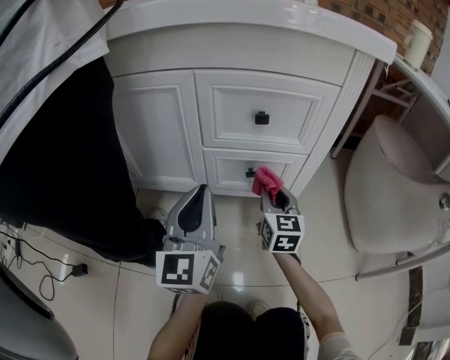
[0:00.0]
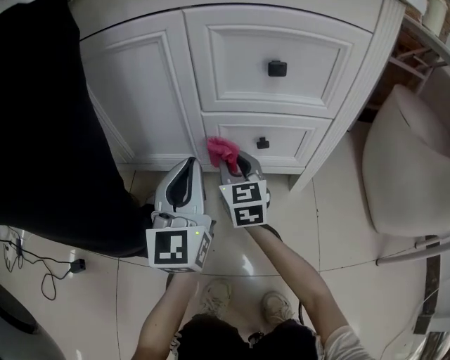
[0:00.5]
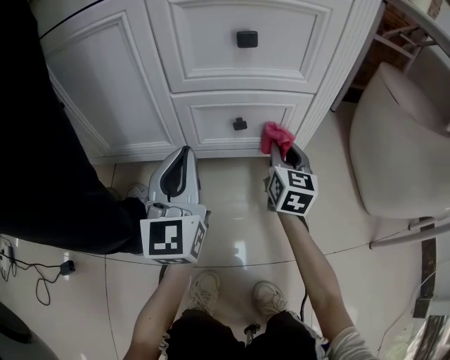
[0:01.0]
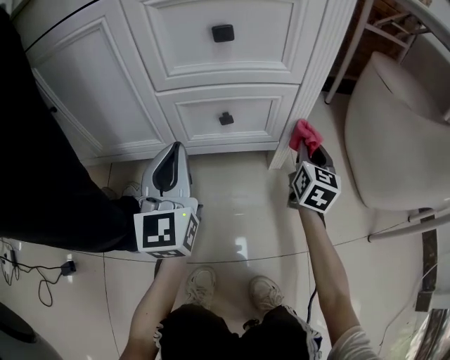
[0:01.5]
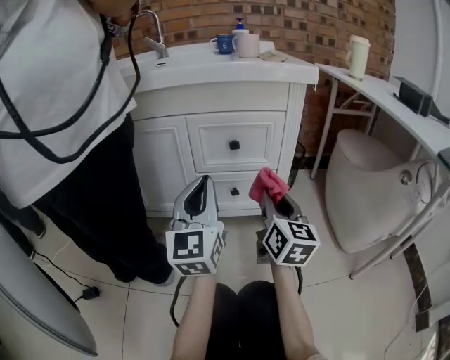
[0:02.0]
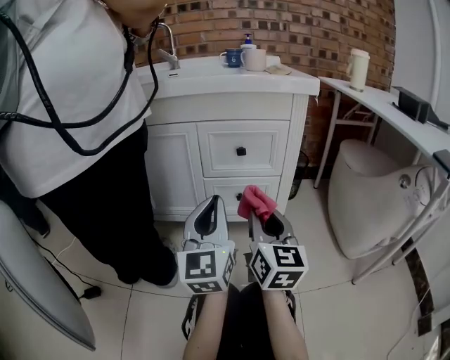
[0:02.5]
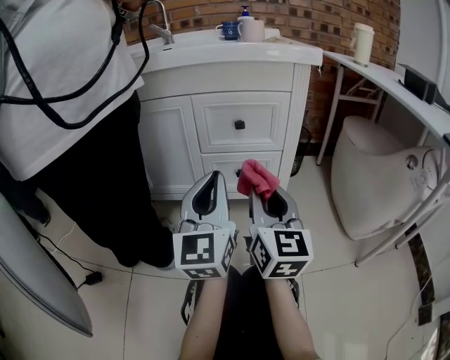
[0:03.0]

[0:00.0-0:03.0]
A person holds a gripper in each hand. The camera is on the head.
0:00.0 to 0:01.5: The right gripper moves to the right and downward, approximately 20 cm, and rotates roughly 20 degrees. The left gripper moves downward and forward, roughly 15 cm.
0:01.5 to 0:03.0: The right gripper shifts roughly 40 cm upward, backward and to the left, and changes its angle by approximately 30 degrees. Meanwhile the left gripper is displaced upward and backward by approximately 25 cm.

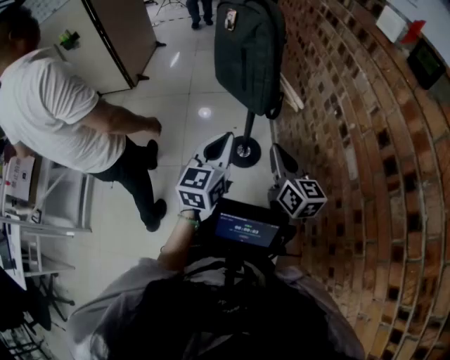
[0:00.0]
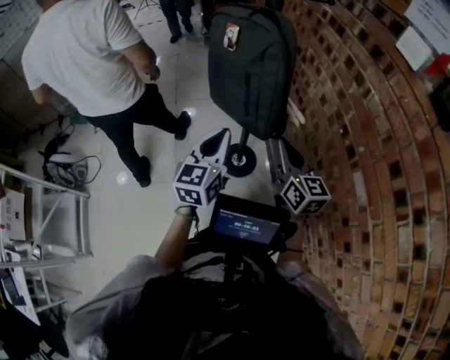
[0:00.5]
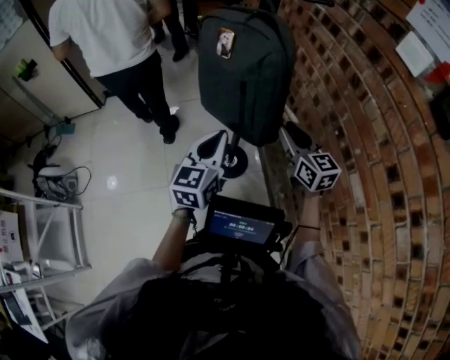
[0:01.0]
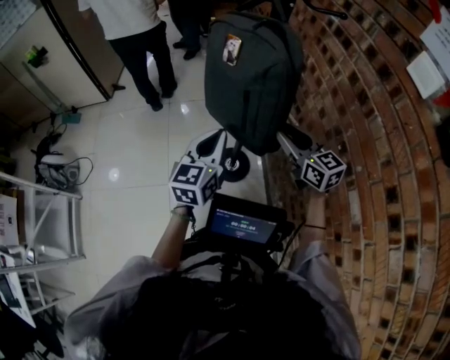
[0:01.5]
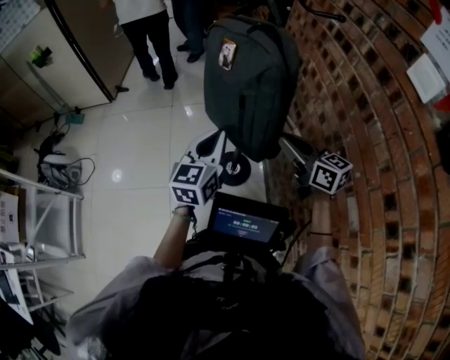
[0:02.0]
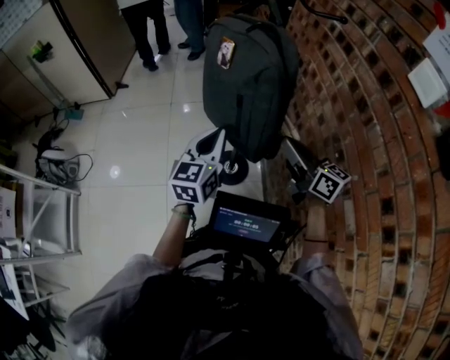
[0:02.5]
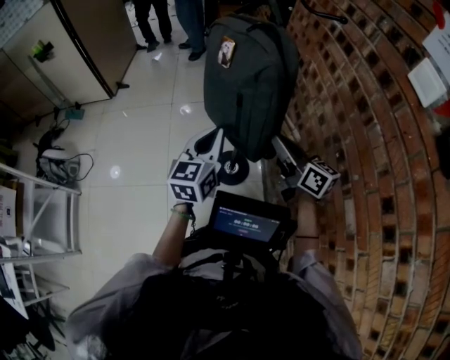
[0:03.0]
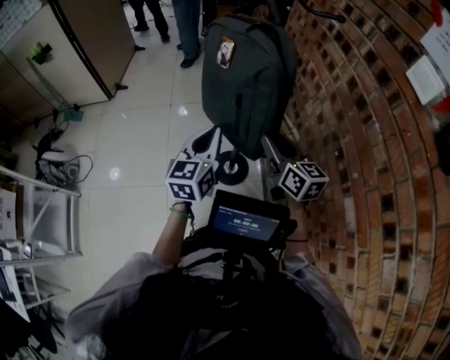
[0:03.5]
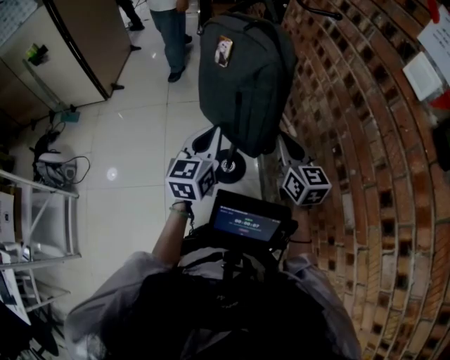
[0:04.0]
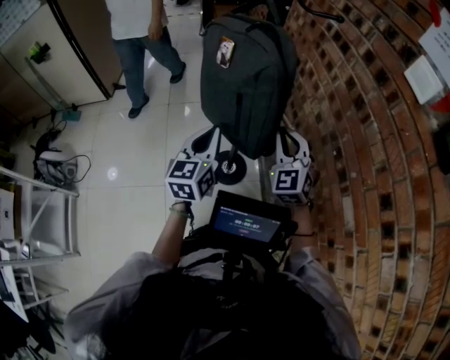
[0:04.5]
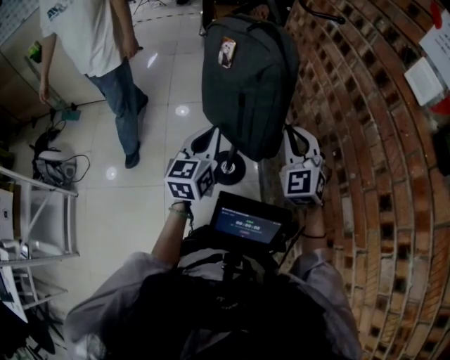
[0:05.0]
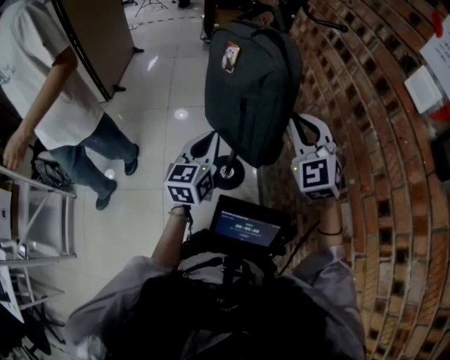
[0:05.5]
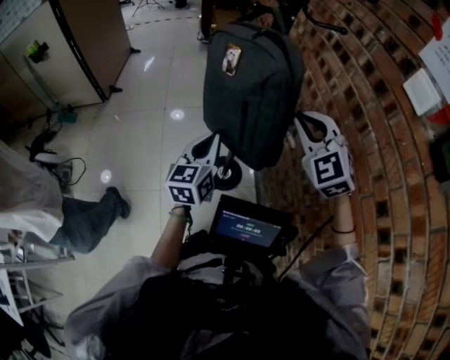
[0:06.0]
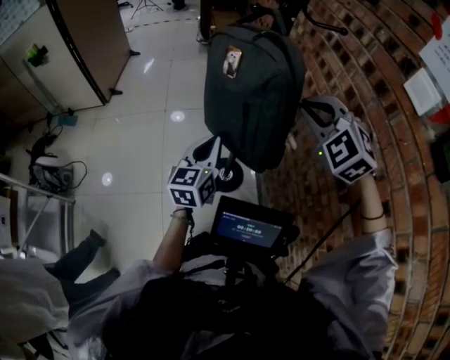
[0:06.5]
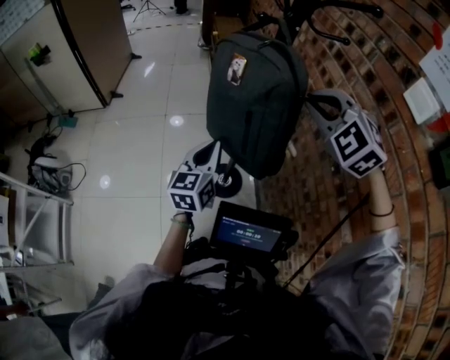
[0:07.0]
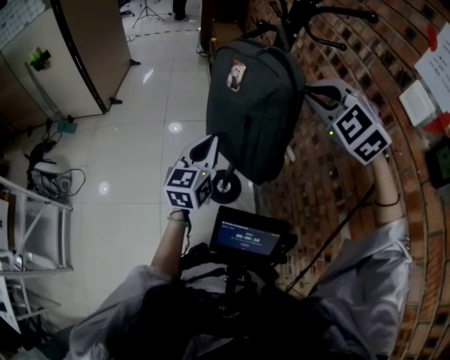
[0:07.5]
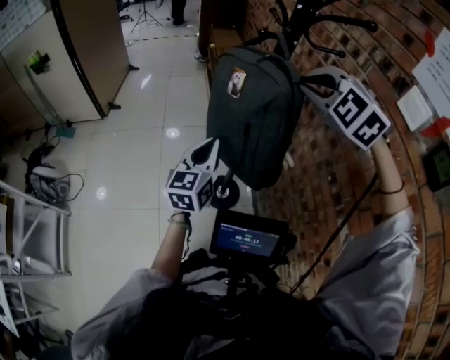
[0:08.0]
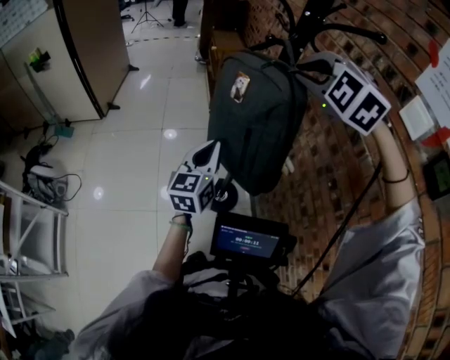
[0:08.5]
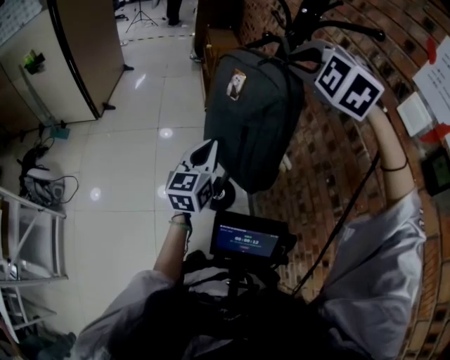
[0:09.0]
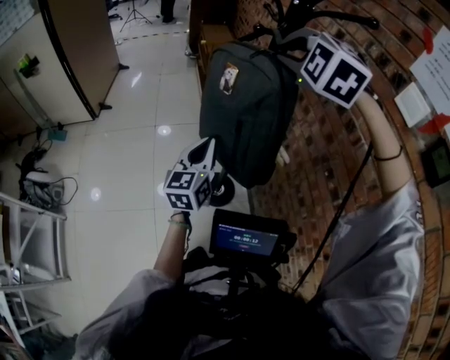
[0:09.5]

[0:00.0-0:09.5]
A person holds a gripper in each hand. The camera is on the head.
0:00.0 to 0:02.0: The two grippers go some 15 cm forward. The right gripper turns by approximately 20 degrees, and opens, then closes again.
0:02.0 to 0:04.0: The right gripper changes its angle by approximately 30 degrees, and opens, then closes once more.
0:04.0 to 0:05.5: The right gripper is displaced upward by roughly 10 cm, and rotates around the line of its fingers by approximately 50 degrees, counterclockwise from behind.
0:05.5 to 0:07.5: The right gripper is displaced upward by about 10 cm, and rotates some 30 degrees.
0:07.5 to 0:09.5: The right gripper shifts some 10 cm to the left, upward and forward.

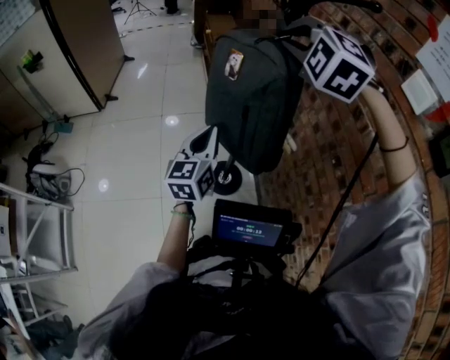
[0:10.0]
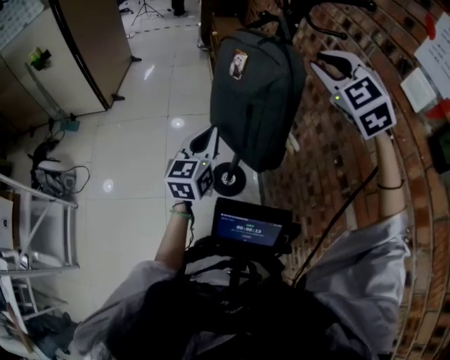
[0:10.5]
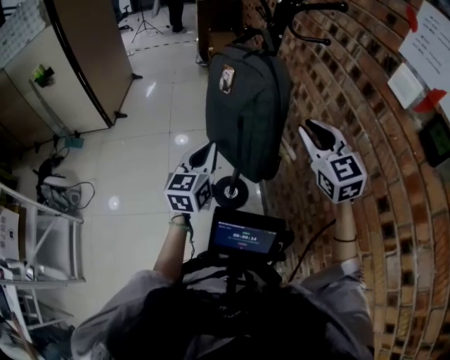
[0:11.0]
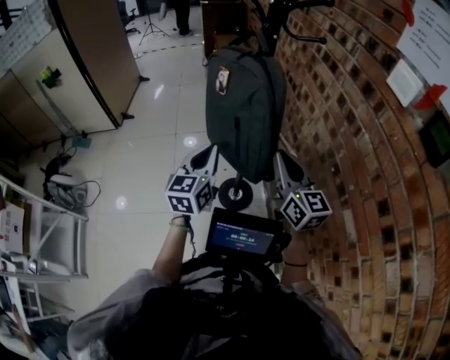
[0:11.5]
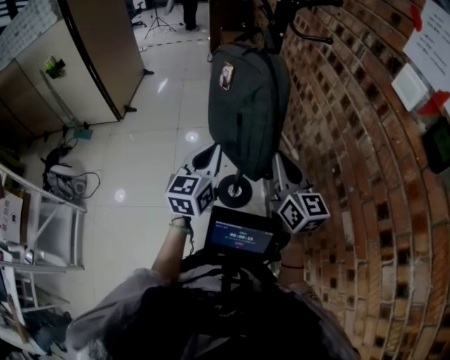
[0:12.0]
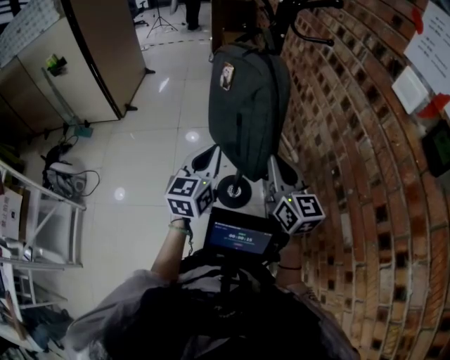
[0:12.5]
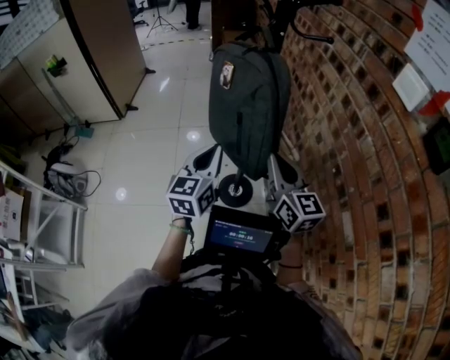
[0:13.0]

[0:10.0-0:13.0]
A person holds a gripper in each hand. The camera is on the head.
0:10.0 to 0:11.5: The right gripper travels downward, backward and to the right by roughly 25 cm, and rotates around the line of its fingers by approximately 90 degrees, clockwise from behind.
0:11.5 to 0:13.0: The grippers move only a little.

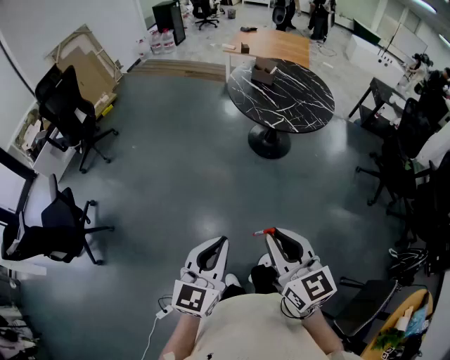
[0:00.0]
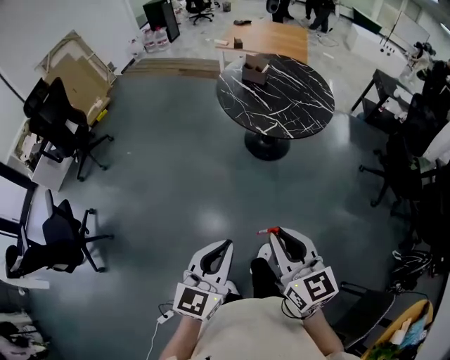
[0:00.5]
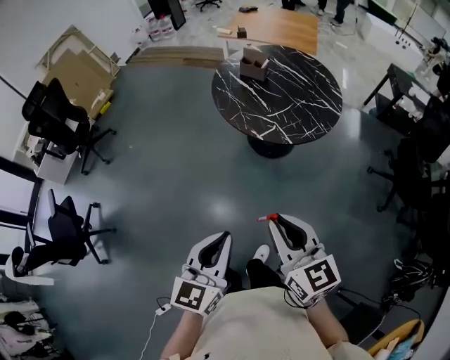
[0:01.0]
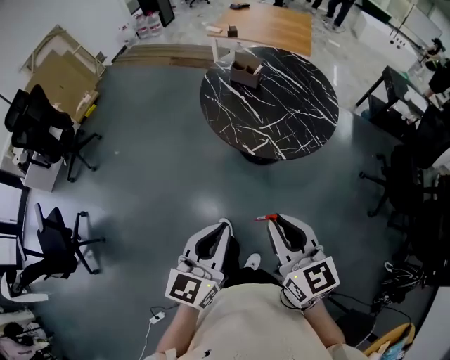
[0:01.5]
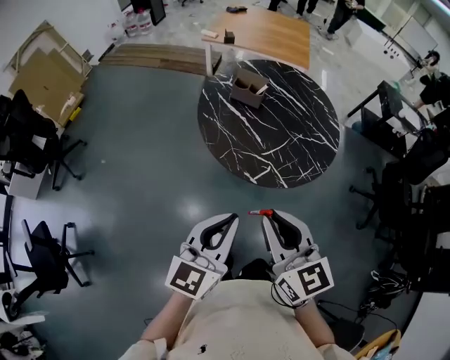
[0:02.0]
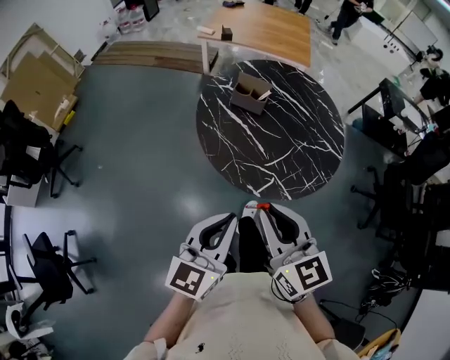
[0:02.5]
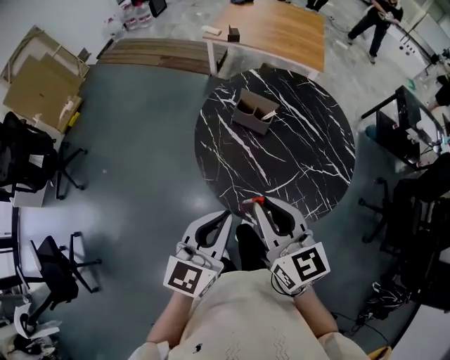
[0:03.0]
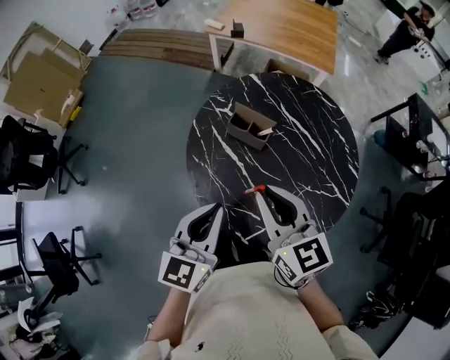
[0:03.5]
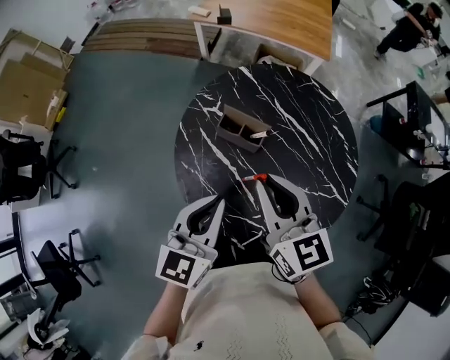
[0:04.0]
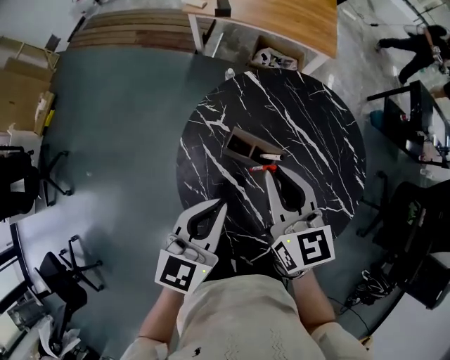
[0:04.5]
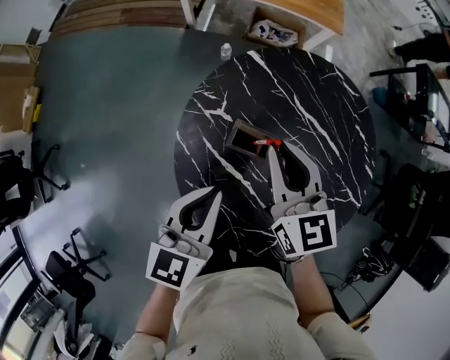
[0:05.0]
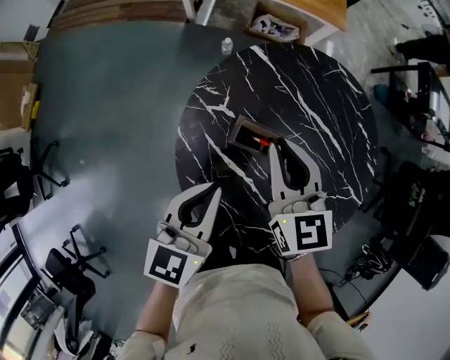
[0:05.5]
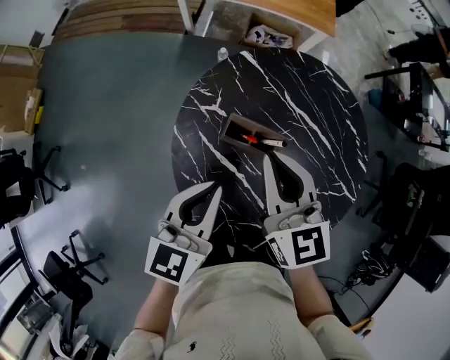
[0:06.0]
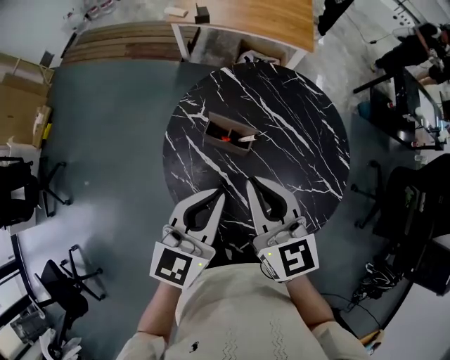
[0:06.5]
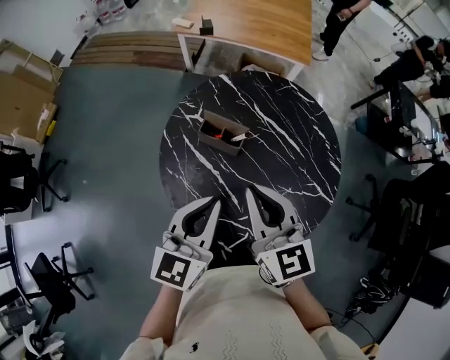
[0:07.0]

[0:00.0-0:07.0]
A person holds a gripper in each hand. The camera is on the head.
0:00.0 to 0:02.0: The two grippers travel together, forward, approximately 50 cm.
0:02.0 to 0:03.5: Both grippers travel together forward, some 35 cm.
0:03.5 to 0:05.0: Both grippers move forward and downward, approximately 25 cm.
0:05.0 to 0:07.0: The left gripper is displaced backward, to the right and upward by approximately 20 cm; the right gripper goes about 25 cm backward and upward.

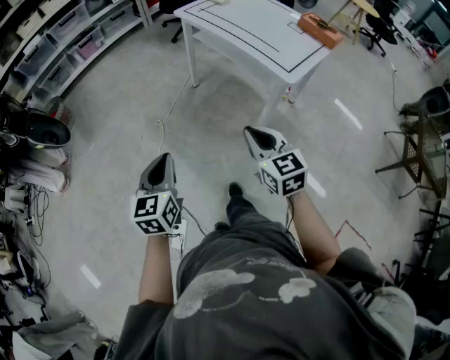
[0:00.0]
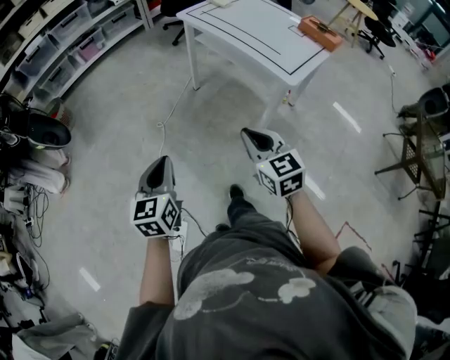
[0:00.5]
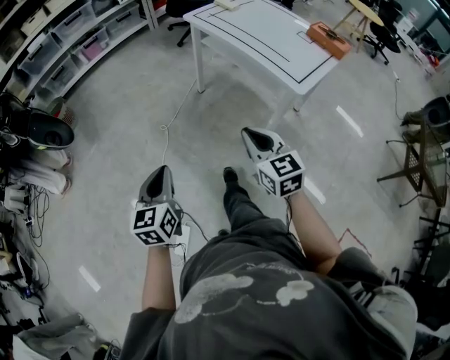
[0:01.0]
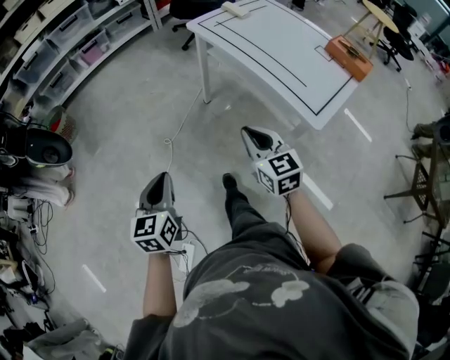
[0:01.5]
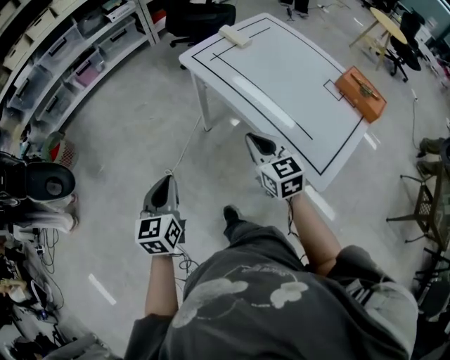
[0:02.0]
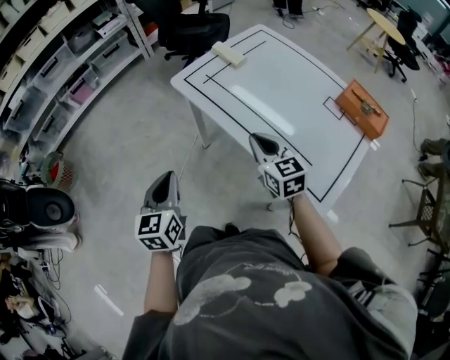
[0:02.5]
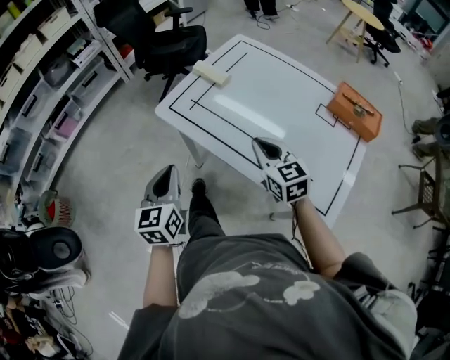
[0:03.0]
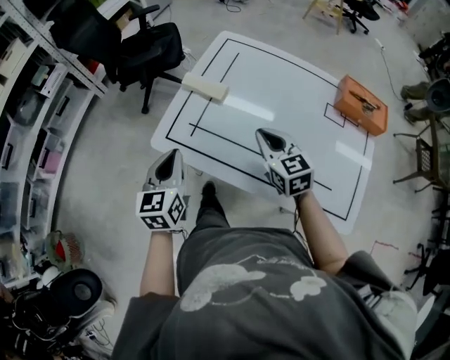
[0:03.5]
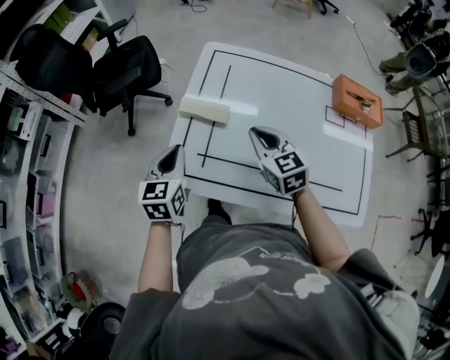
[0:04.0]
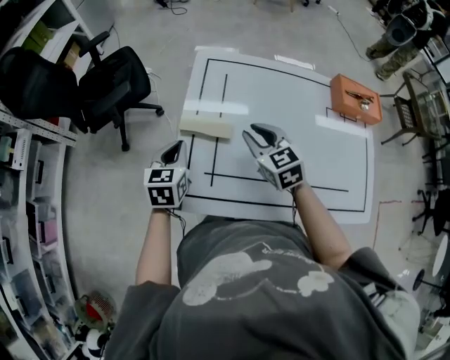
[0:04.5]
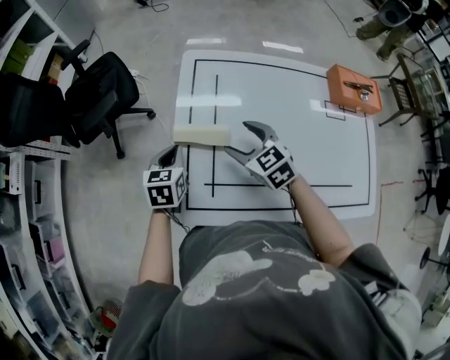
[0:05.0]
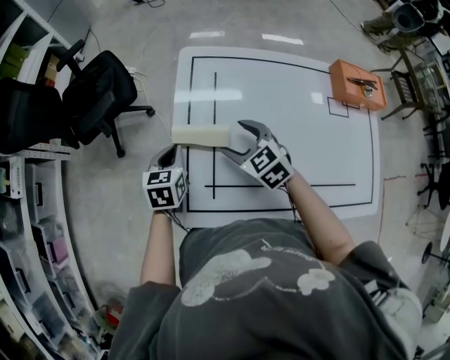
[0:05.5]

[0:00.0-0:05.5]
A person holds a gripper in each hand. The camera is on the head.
0:00.0 to 0:02.0: The grippers both shift forward by roughly 40 cm.
0:02.0 to 0:03.5: The right gripper moves about 30 cm, and swivels roughly 30 degrees; the left gripper shifts by about 40 cm, and swivels some 30 degrees.
0:03.5 to 0:05.5: The right gripper moves forward, to the left and downward, some 20 cm, and opens up, while the left gripper travels forward and downward by some 30 cm, and turns by roughly 30 degrees.
